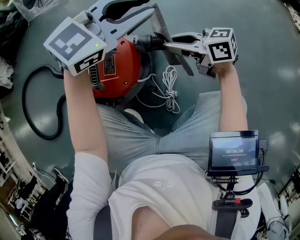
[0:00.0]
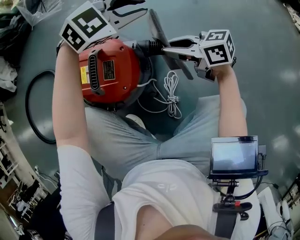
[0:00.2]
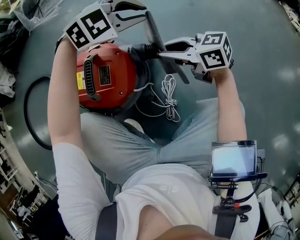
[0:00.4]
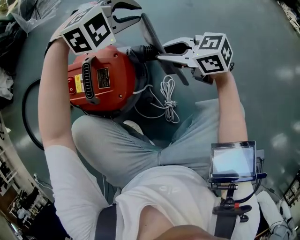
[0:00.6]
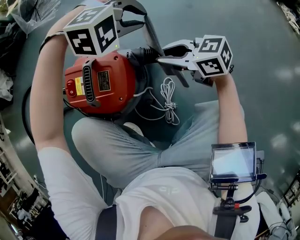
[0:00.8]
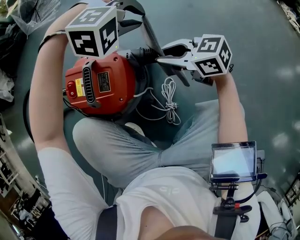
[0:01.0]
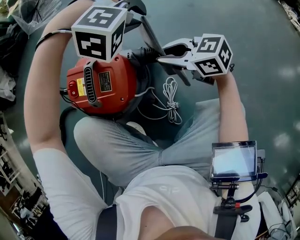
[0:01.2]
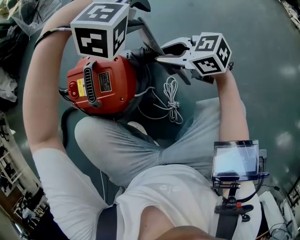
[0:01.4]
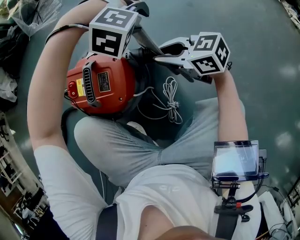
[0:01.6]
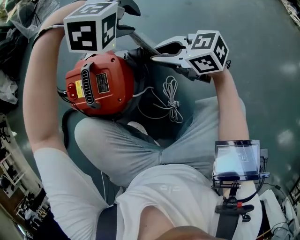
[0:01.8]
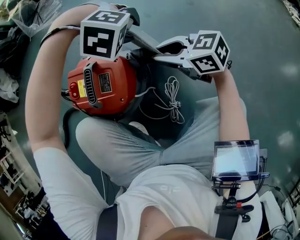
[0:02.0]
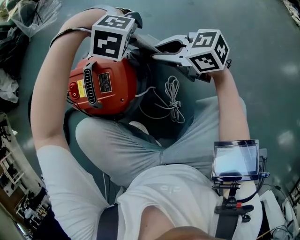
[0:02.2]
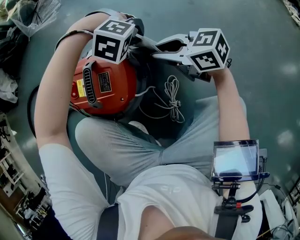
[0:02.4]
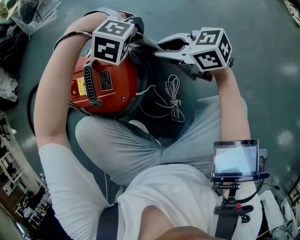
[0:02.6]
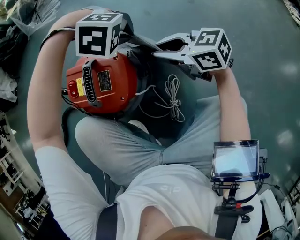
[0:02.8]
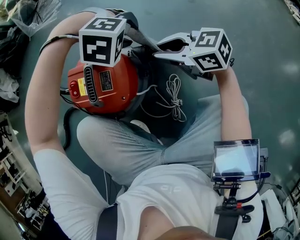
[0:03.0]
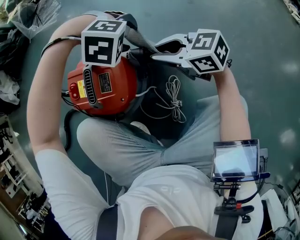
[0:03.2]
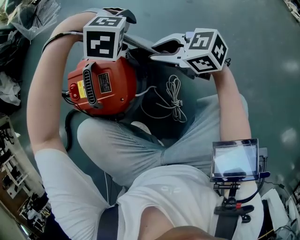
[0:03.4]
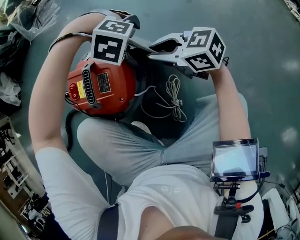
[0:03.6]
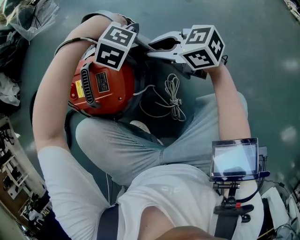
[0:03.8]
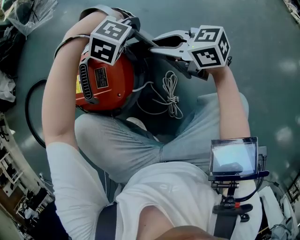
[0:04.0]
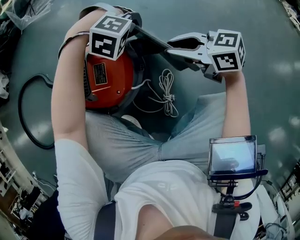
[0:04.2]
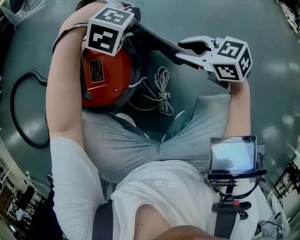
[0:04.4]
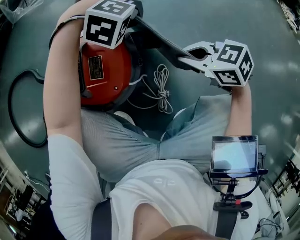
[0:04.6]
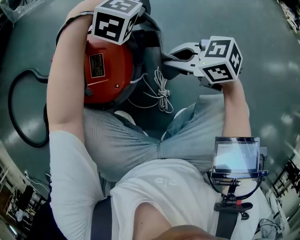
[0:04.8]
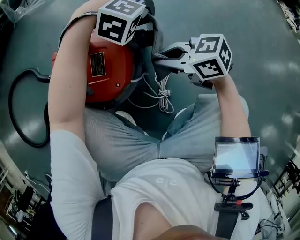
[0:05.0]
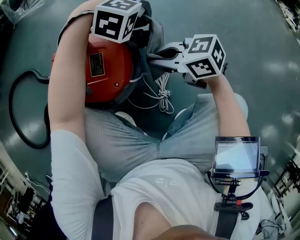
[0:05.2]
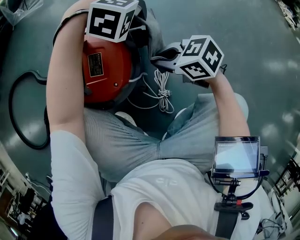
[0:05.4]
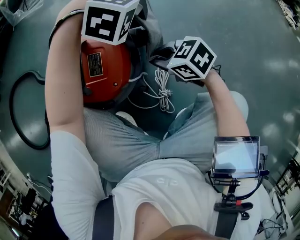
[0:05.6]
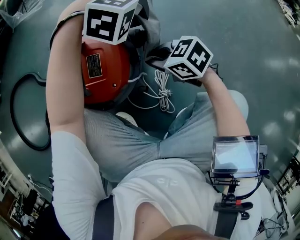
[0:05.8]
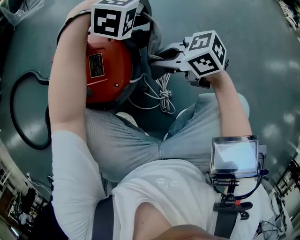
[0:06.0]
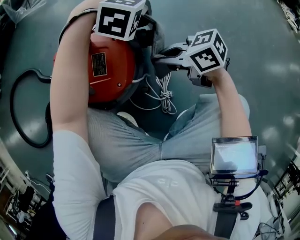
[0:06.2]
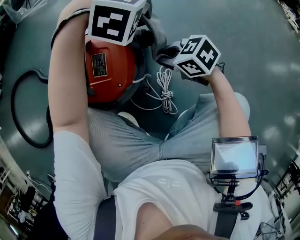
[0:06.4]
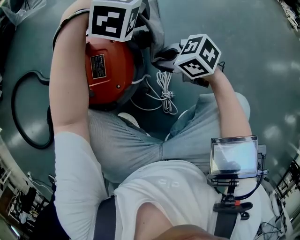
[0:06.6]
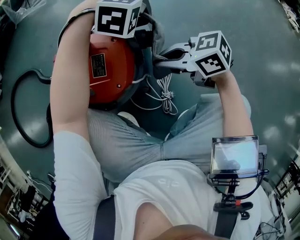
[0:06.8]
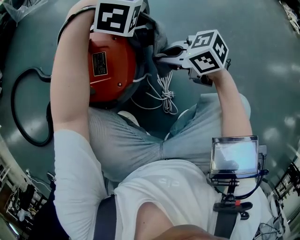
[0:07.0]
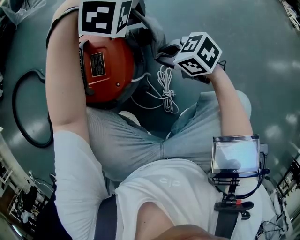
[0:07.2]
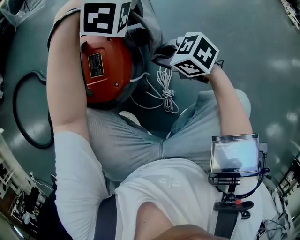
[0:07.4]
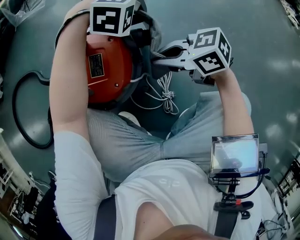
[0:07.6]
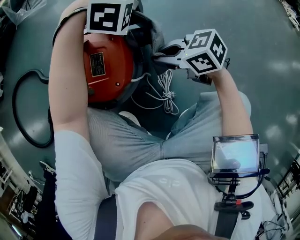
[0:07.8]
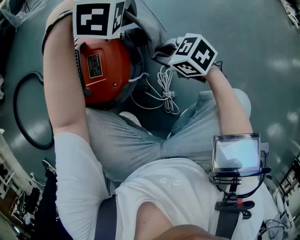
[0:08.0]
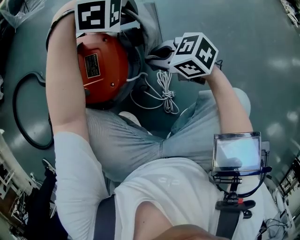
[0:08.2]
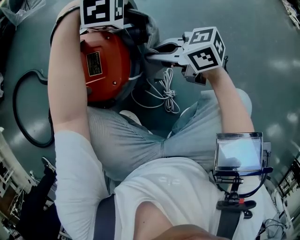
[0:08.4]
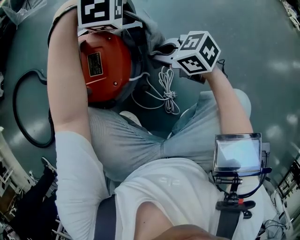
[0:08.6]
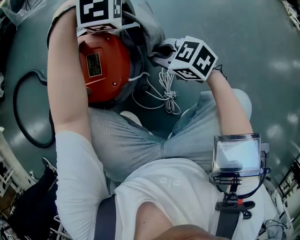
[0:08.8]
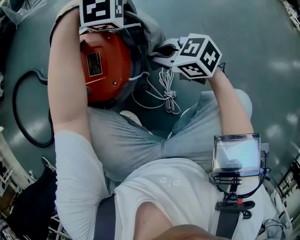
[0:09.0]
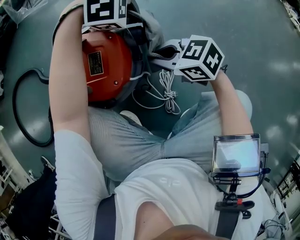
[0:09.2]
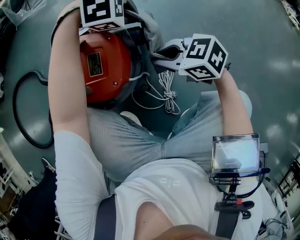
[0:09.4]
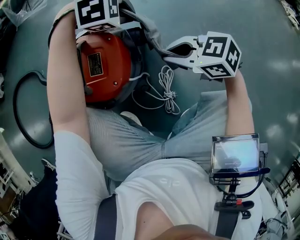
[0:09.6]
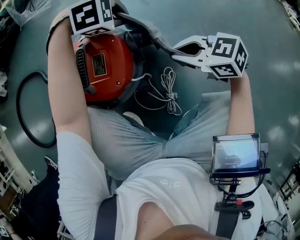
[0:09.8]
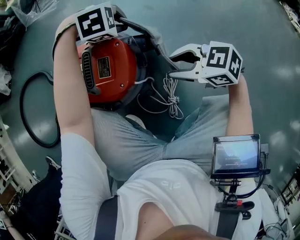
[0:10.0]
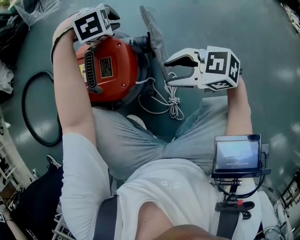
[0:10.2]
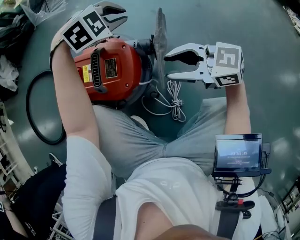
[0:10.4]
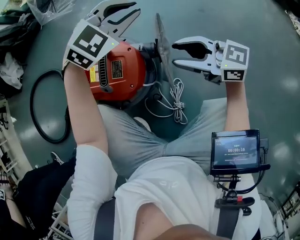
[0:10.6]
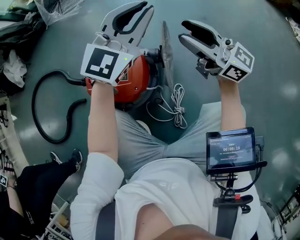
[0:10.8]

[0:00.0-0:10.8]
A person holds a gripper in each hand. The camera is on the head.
0:00.0 to 0:01.6: The left gripper shifts approximately 10 cm downward, and angles its fingers downward, by roughly 50 degrees.
0:01.6 to 0:03.0: The left gripper reaches about 5 cm downward, then returns, and closes, then opens again.
0:03.0 to 0:04.6: The left gripper shifts by roughly 5 cm, and closes; the right gripper ends up some 10 cm from where it was.
0:04.6 to 0:06.2: The right gripper changes place by roughly 5 cm, and swivels some 20 degrees.
0:06.2 to 0:07.8: The right gripper goes up and down, about 5 cm each way, reversing 3 times.
0:07.8 to 0:09.2: The right gripper swings up and down, roughly 5 cm each way, with 2 reversals.
0:09.2 to 0:10.8: The two grippers go roughly 20 cm upward. The left gripper points its fingers approximately 70 degrees further upward. Meanwhile the right gripper tilts its fingers about 50 degrees upward, and opens.

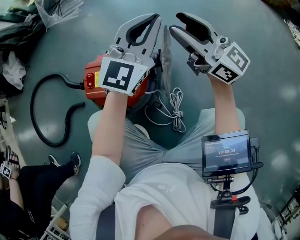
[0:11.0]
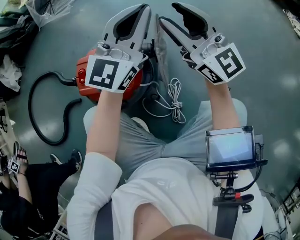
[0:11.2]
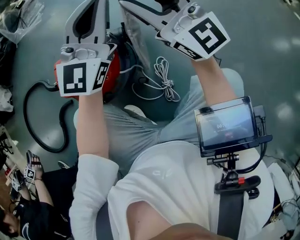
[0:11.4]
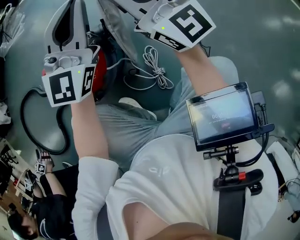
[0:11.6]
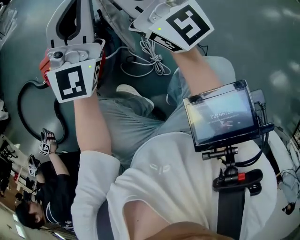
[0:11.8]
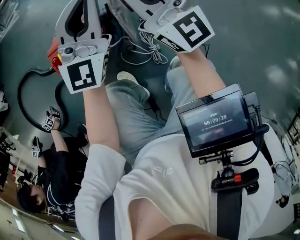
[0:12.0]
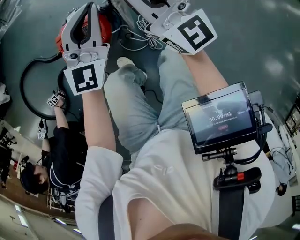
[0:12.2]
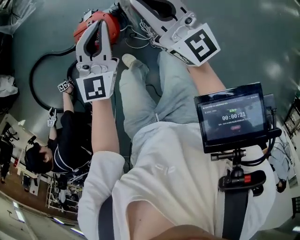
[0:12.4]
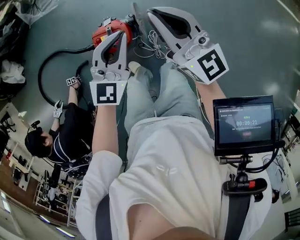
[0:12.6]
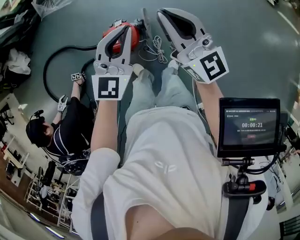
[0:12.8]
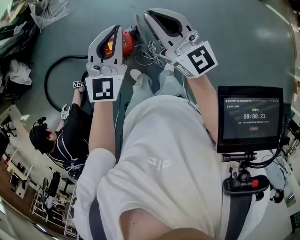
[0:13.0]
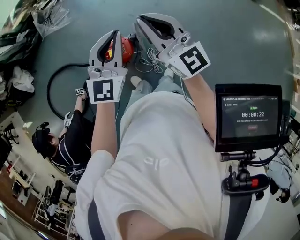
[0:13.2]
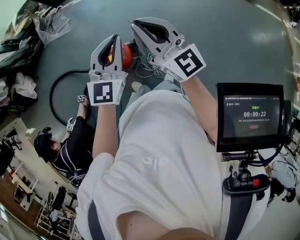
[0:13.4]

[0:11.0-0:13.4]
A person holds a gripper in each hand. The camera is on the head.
0:11.0 to 0:12.2: The left gripper heads downward and to the right, covering about 20 cm. Meanwhile the right gripper moves downward, to the right and backward, roughly 15 cm, turns by roughly 30 degrees, and closes its fingers.
0:12.2 to 0:13.4: The two grippers go some 25 cm backward, downward and to the left. The right gripper rotates approximately 30 degrees, while the left gripper angles its fingers downward, by about 30 degrees.

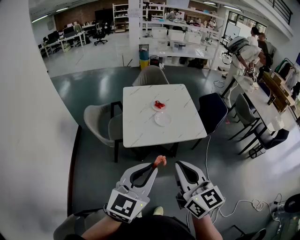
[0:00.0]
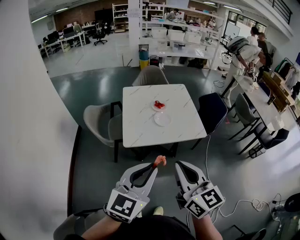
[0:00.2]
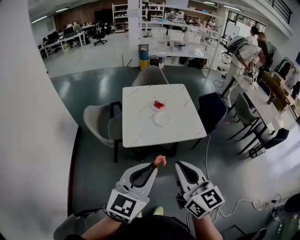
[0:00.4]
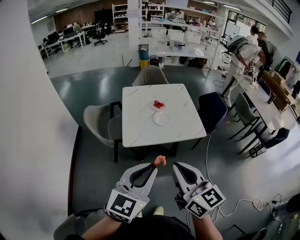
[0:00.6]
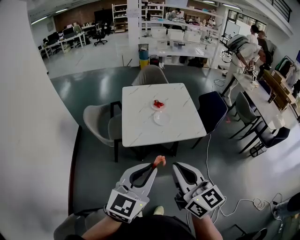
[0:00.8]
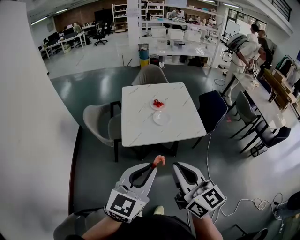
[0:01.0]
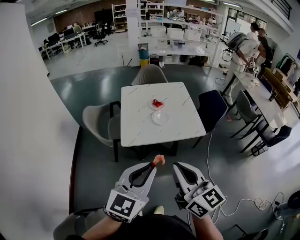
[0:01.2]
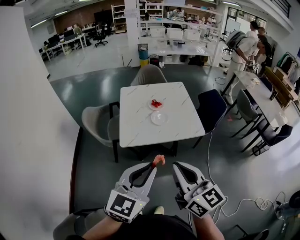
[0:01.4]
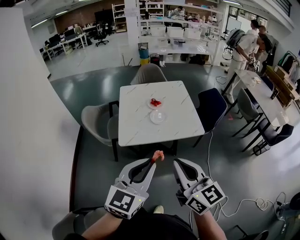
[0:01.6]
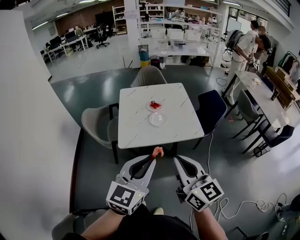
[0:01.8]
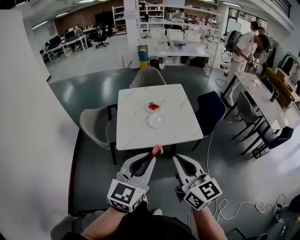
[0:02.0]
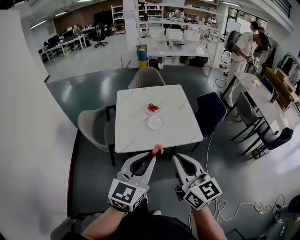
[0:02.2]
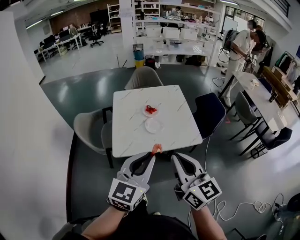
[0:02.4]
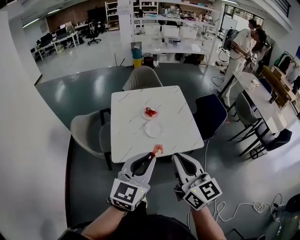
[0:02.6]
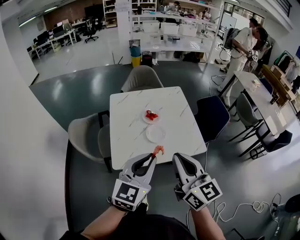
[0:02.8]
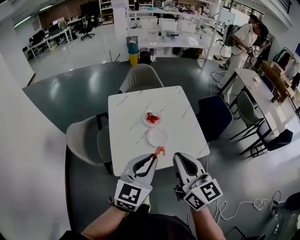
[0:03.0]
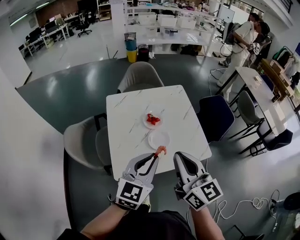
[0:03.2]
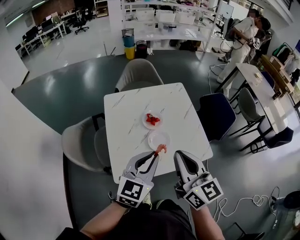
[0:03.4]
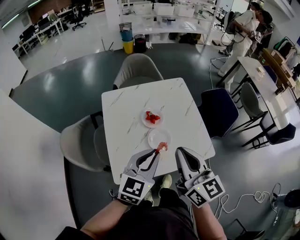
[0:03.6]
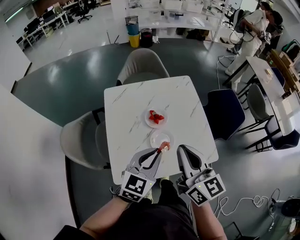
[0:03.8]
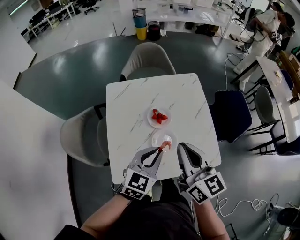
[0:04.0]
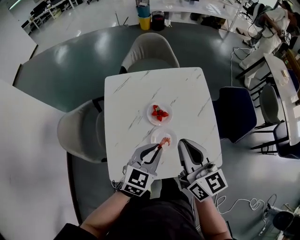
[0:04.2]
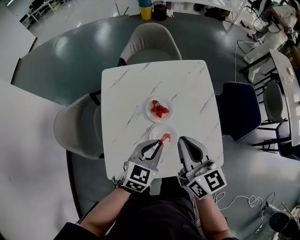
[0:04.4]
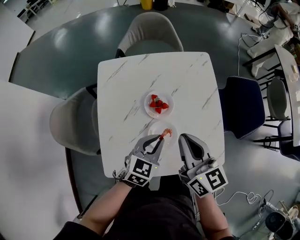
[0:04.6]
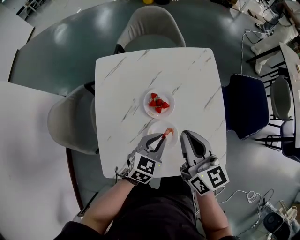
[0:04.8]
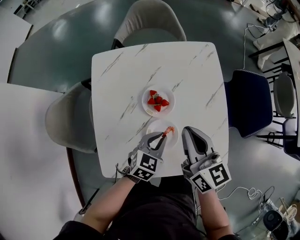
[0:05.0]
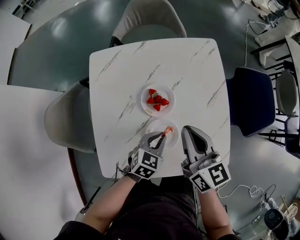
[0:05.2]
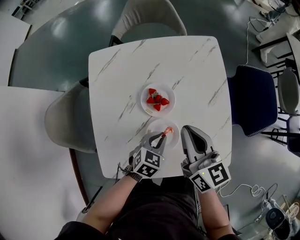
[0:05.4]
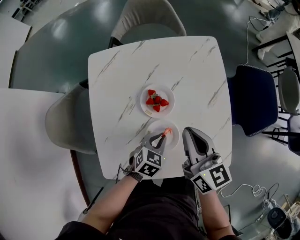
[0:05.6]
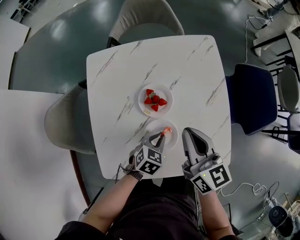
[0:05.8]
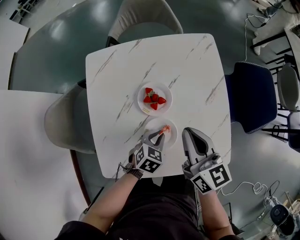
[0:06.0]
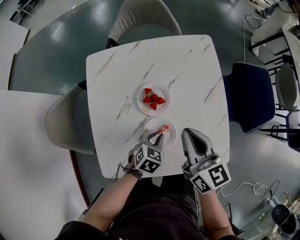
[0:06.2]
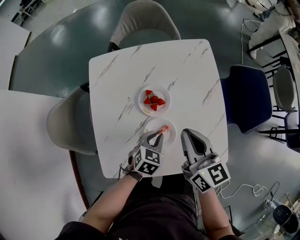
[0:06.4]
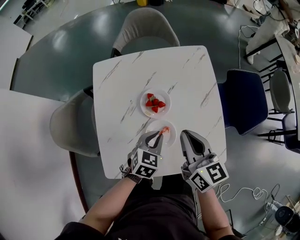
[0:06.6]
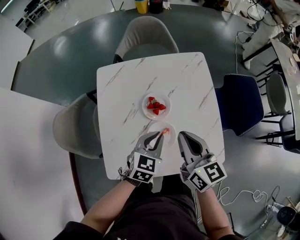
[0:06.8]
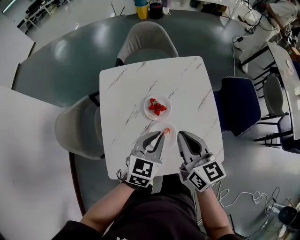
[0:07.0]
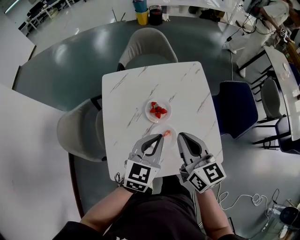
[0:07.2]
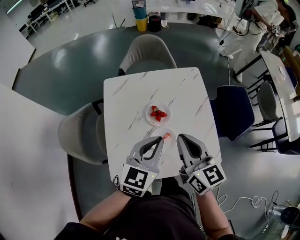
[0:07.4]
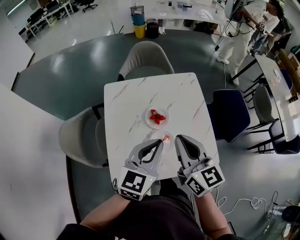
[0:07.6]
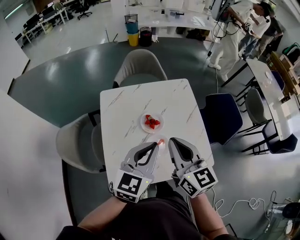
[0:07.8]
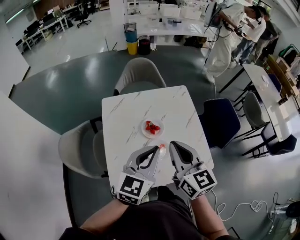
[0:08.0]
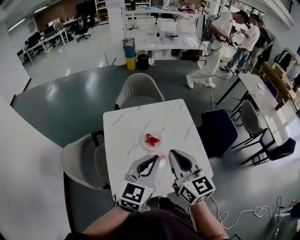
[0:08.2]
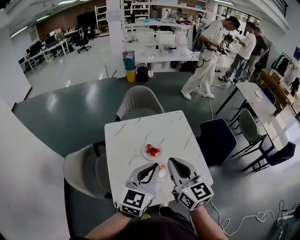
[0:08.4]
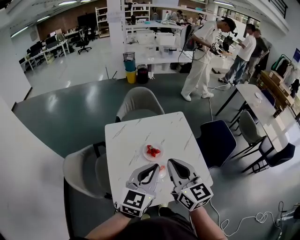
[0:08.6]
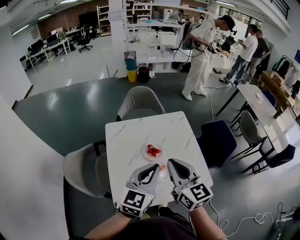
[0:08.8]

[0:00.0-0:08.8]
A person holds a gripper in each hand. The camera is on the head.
0:00.0 to 0:01.4: The left gripper heads to the right, covering some 5 cm.
0:01.4 to 0:03.0: Both grippers travel together forward, approximately 30 cm.
0:03.0 to 0:04.4: The grippers both shift forward and downward by about 30 cm. The left gripper swivels approximately 20 degrees.
0:04.4 to 0:05.8: The left gripper moves downward, roughly 20 cm, and changes its angle by about 30 degrees; the right gripper moves downward and forward, about 10 cm.
0:05.8 to 0:07.4: The right gripper travels upward and backward by some 15 cm, while the left gripper moves upward, approximately 30 cm, and angles its fingers upward, by about 40 degrees.
0:07.4 to 0:08.8: The left gripper is displaced upward and backward by roughly 10 cm; the right gripper heads upward, covering approximately 10 cm.

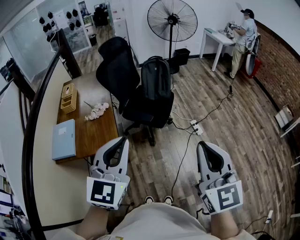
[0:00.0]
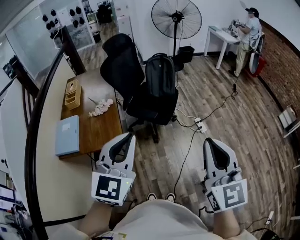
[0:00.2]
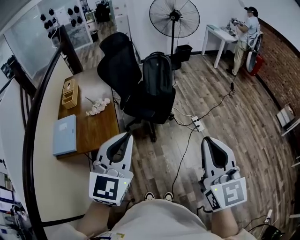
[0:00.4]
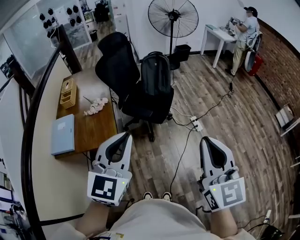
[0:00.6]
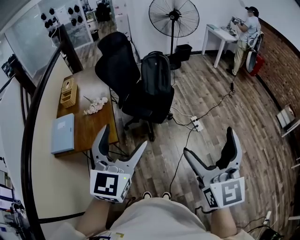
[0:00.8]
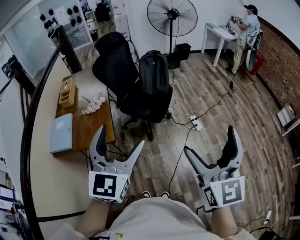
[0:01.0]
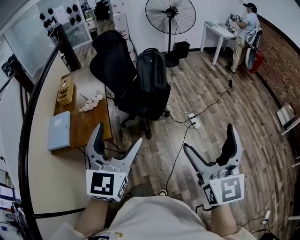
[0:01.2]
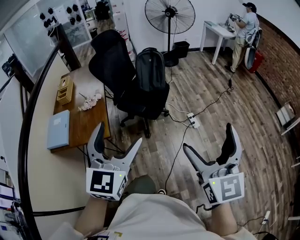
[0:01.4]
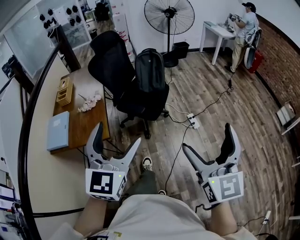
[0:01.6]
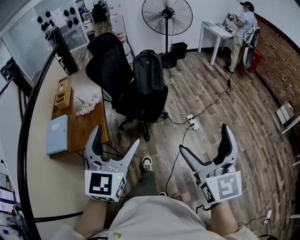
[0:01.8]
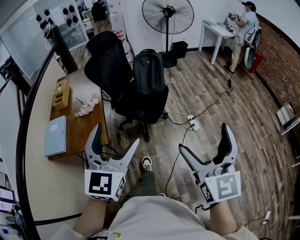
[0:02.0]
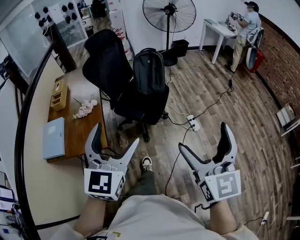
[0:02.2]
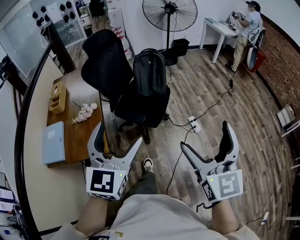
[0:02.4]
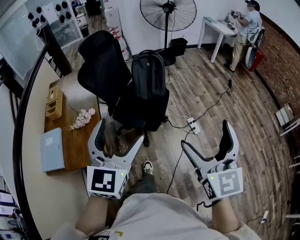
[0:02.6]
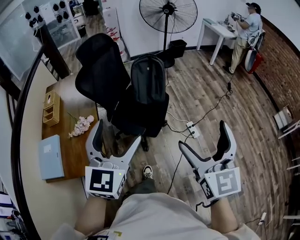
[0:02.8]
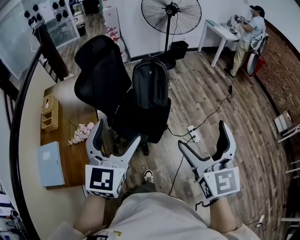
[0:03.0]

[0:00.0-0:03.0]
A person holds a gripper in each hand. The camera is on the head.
0:00.0 to 0:01.6: The grippers both shift to the right by about 10 cm. The right gripper opens its fingers, while the left gripper opens.
0:01.6 to 0:03.0: The two grippers go about 35 cm forward.
